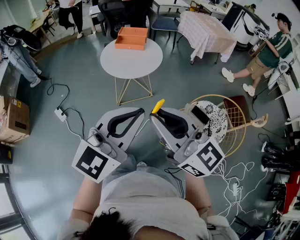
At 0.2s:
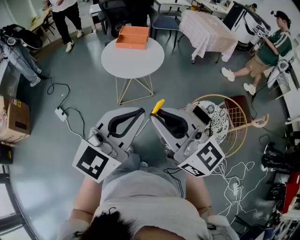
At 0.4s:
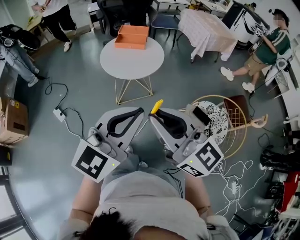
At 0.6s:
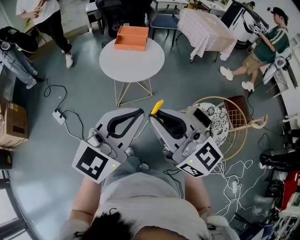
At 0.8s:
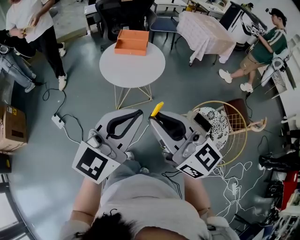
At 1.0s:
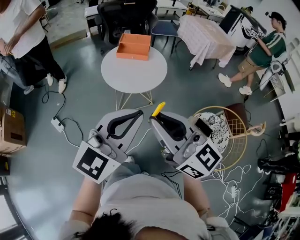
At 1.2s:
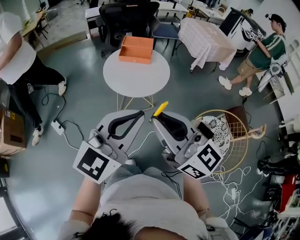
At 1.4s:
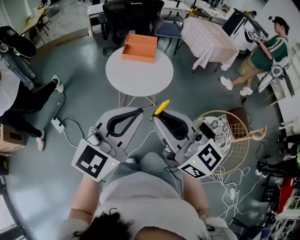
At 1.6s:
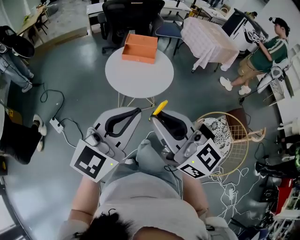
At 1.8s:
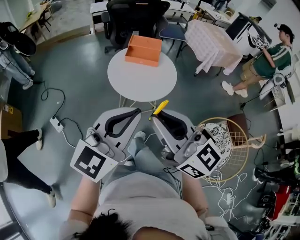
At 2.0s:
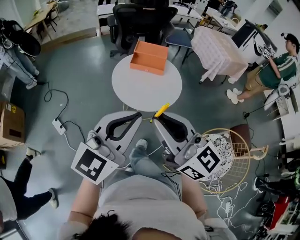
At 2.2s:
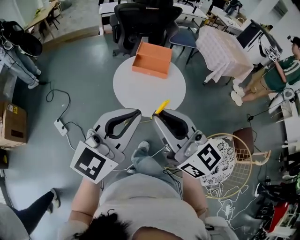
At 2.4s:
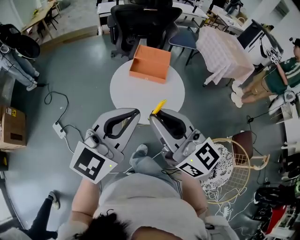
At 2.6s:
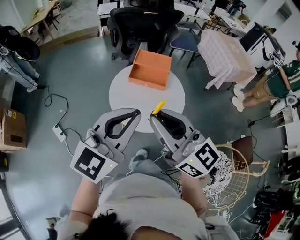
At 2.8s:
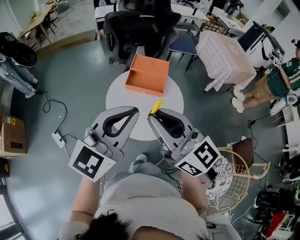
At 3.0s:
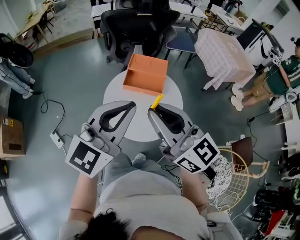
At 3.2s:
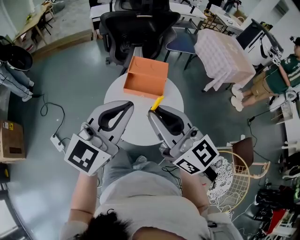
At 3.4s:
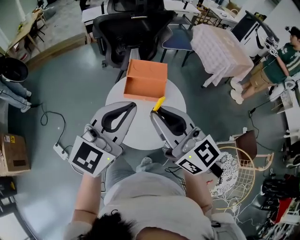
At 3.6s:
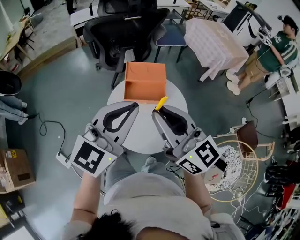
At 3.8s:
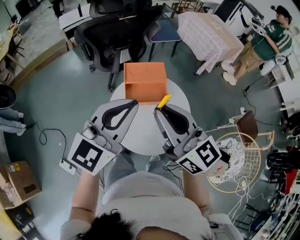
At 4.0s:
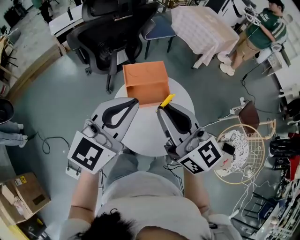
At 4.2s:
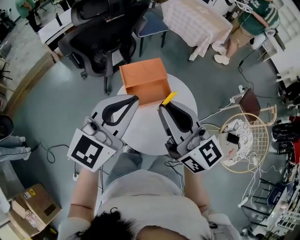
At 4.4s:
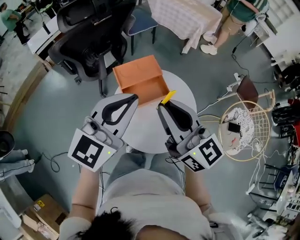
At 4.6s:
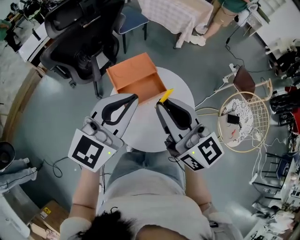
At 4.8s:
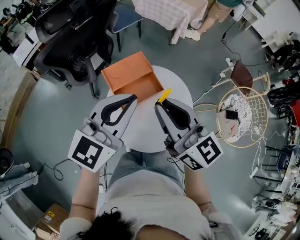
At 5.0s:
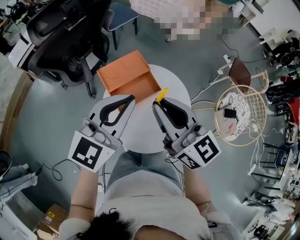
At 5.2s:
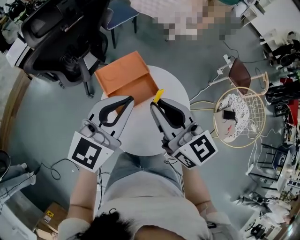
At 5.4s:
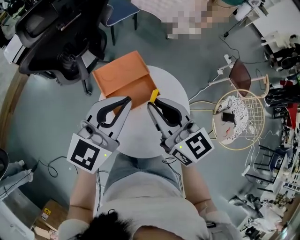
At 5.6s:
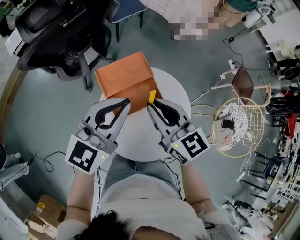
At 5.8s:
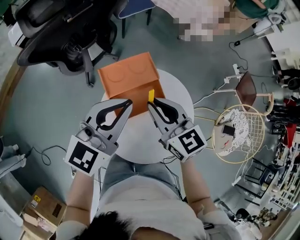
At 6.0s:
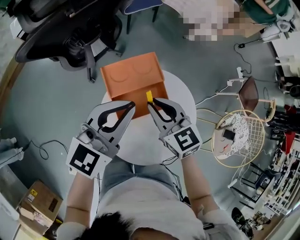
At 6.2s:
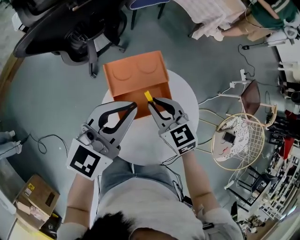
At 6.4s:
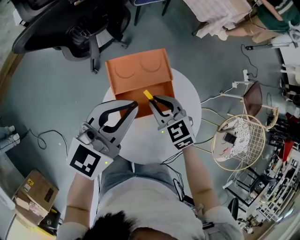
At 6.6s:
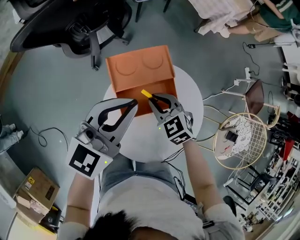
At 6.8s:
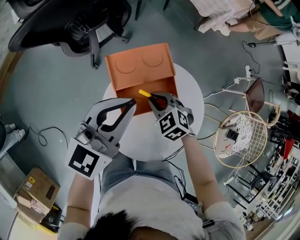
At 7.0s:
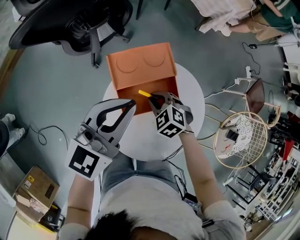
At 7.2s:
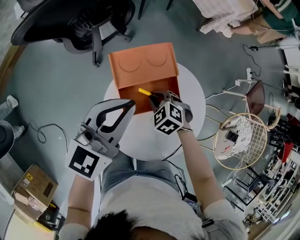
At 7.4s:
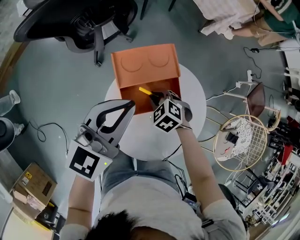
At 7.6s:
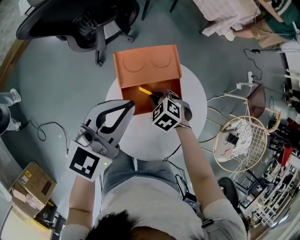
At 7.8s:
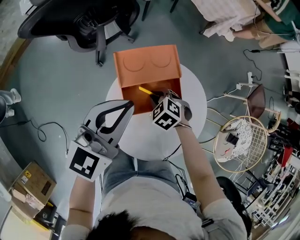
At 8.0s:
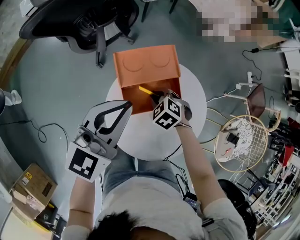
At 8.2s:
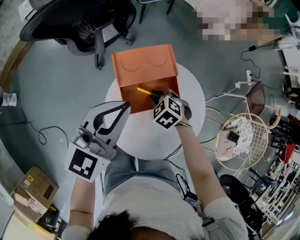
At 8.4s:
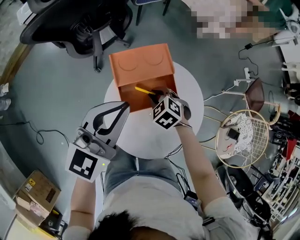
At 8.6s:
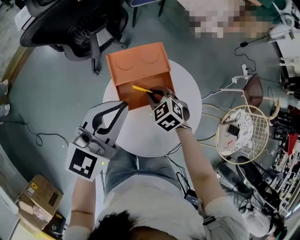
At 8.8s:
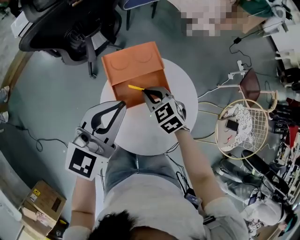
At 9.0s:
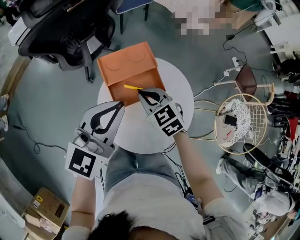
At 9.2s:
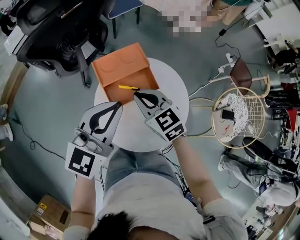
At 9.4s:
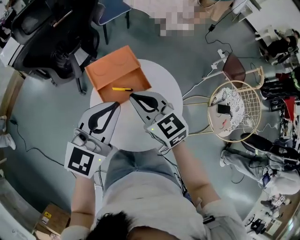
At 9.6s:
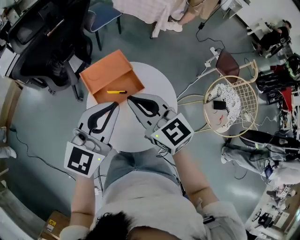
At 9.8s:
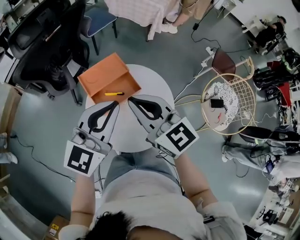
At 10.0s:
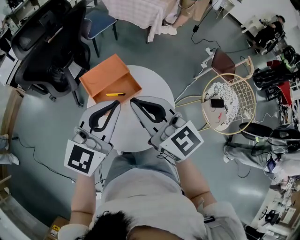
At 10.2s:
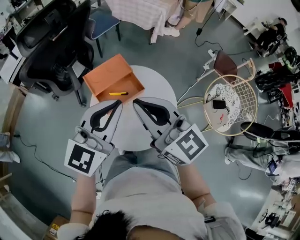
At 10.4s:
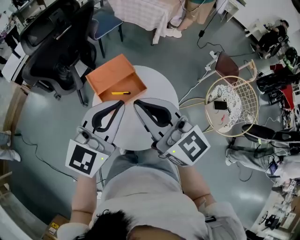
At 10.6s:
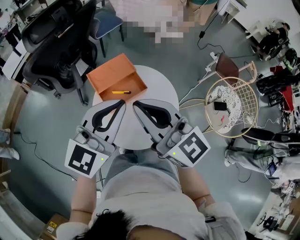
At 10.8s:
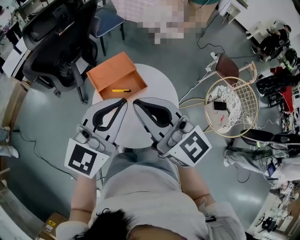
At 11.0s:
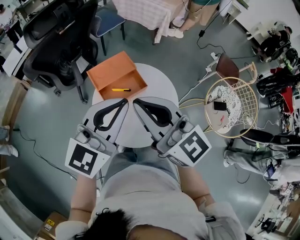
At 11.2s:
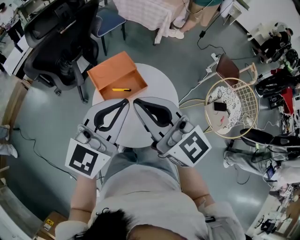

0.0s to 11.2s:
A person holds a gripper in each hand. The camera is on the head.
0.0s to 1.6s: The two grippers go roughly 20 cm forward and to the left.
1.6s to 3.2s: The grippers both shift forward by roughly 30 cm.
3.2s to 4.8s: The left gripper shifts by roughly 20 cm, and rotates about 40 degrees, while the right gripper shifts by about 15 cm, and swivels approximately 50 degrees.
4.8s to 6.4s: The left gripper moves forward and downward, about 15 cm, while the right gripper moves downward and forward, about 30 cm, and tips its fingers downward by roughly 40 degrees.
6.4s to 8.0s: The right gripper is displaced downward by roughly 10 cm, and swivels about 30 degrees.
8.0s to 9.6s: The right gripper heads upward, covering roughly 30 cm, and angles its fingers upward, by roughly 60 degrees, while the left gripper travels backward, to the right and upward by some 15 cm.
9.6s to 11.2s: The left gripper moves upward, about 5 cm. The right gripper is displaced upward and backward by roughly 15 cm.

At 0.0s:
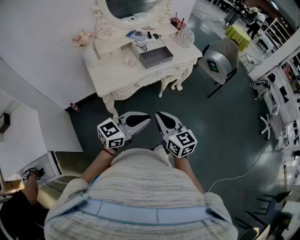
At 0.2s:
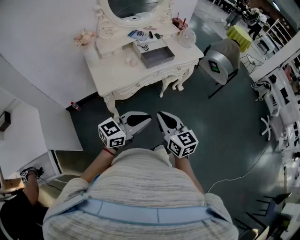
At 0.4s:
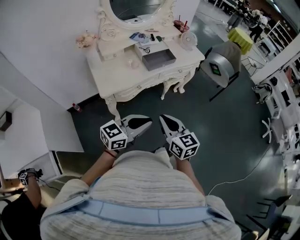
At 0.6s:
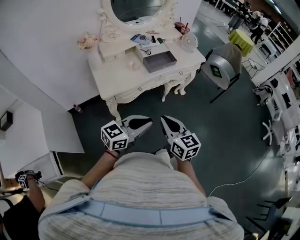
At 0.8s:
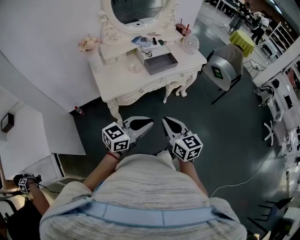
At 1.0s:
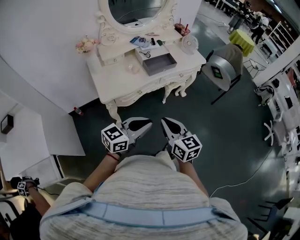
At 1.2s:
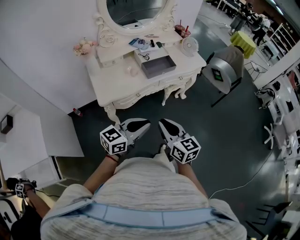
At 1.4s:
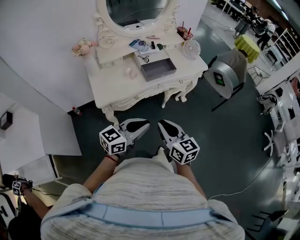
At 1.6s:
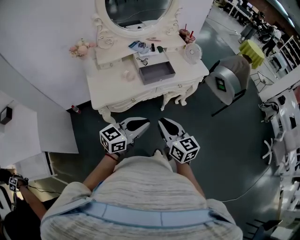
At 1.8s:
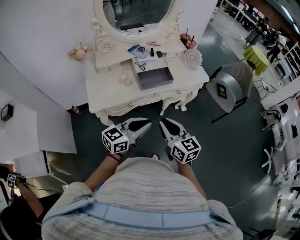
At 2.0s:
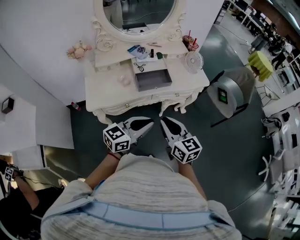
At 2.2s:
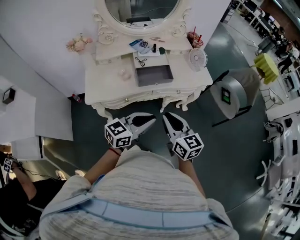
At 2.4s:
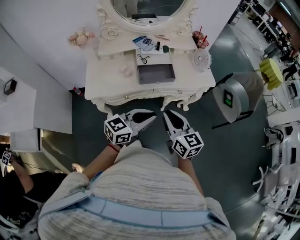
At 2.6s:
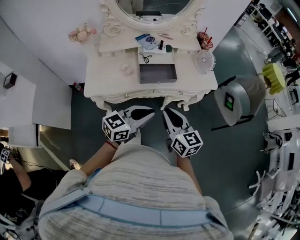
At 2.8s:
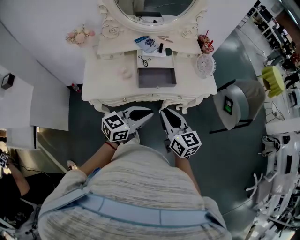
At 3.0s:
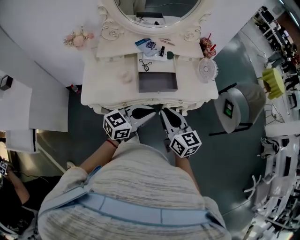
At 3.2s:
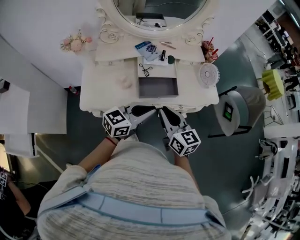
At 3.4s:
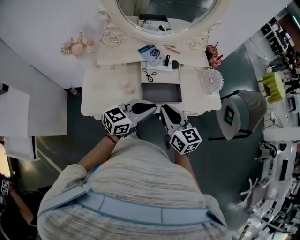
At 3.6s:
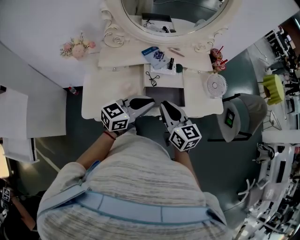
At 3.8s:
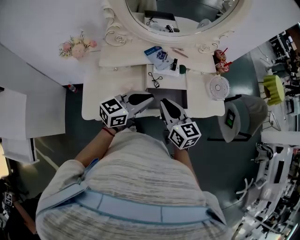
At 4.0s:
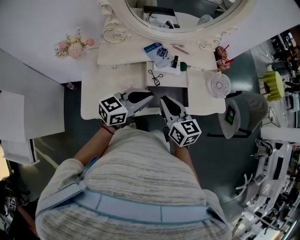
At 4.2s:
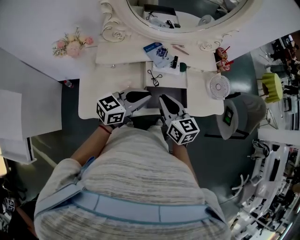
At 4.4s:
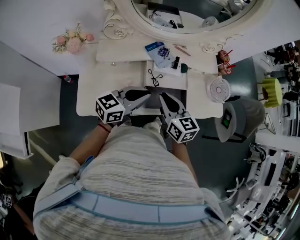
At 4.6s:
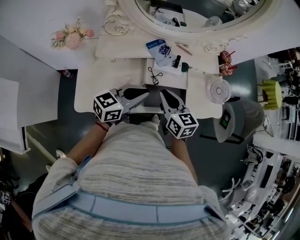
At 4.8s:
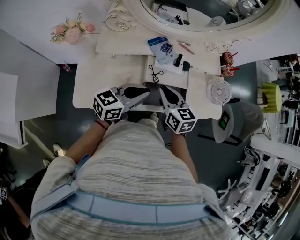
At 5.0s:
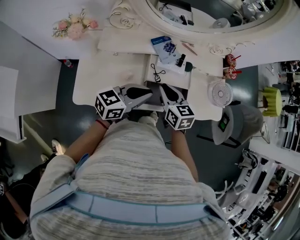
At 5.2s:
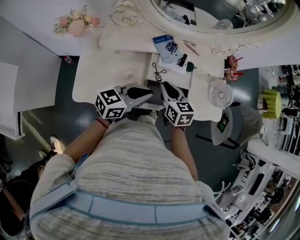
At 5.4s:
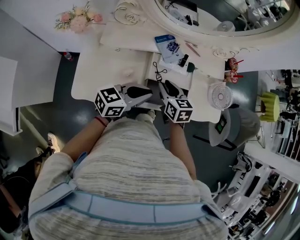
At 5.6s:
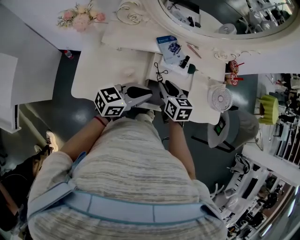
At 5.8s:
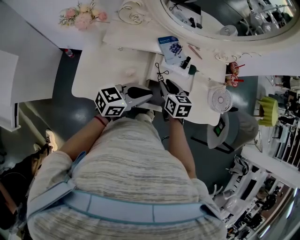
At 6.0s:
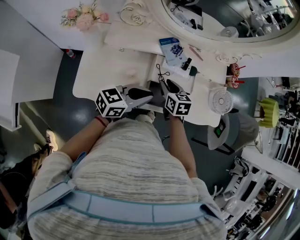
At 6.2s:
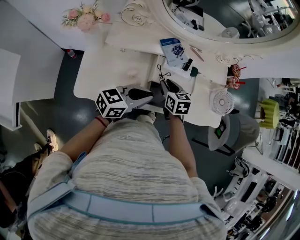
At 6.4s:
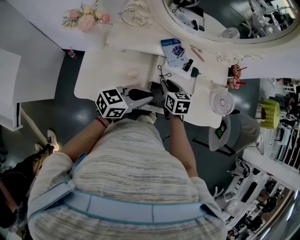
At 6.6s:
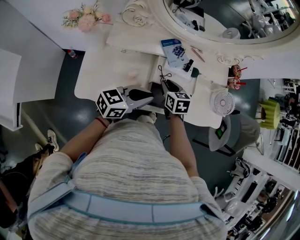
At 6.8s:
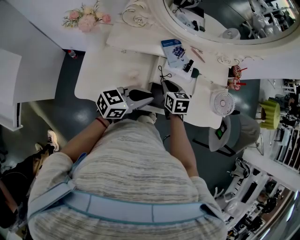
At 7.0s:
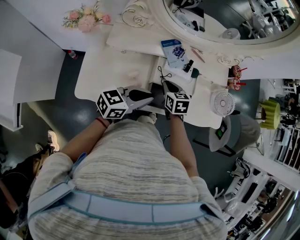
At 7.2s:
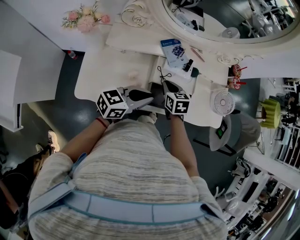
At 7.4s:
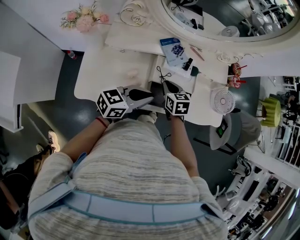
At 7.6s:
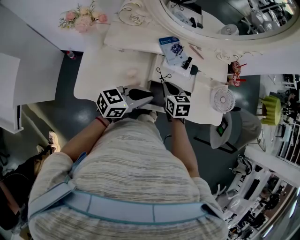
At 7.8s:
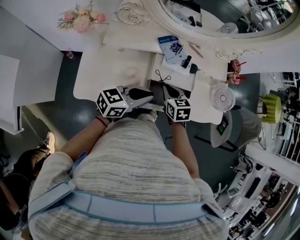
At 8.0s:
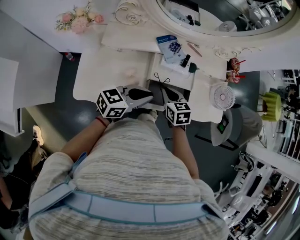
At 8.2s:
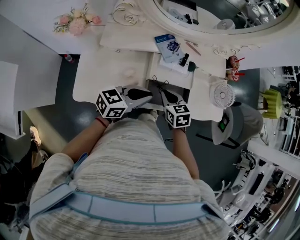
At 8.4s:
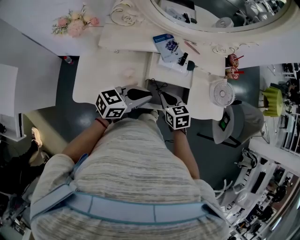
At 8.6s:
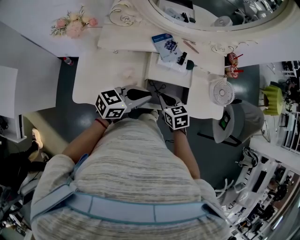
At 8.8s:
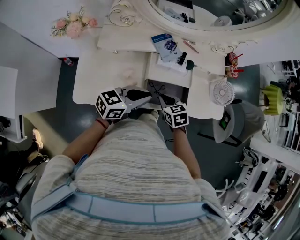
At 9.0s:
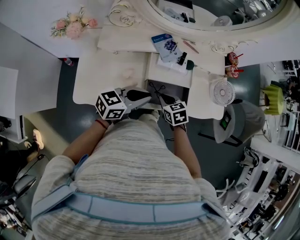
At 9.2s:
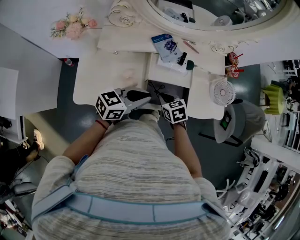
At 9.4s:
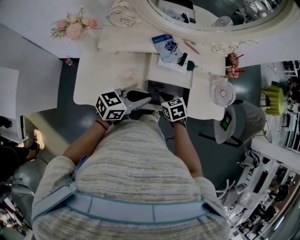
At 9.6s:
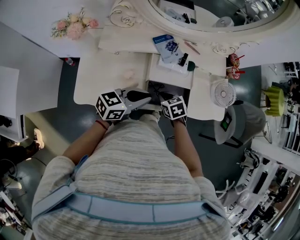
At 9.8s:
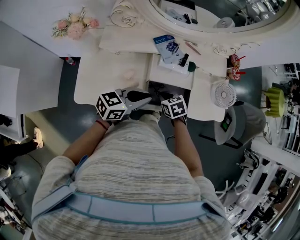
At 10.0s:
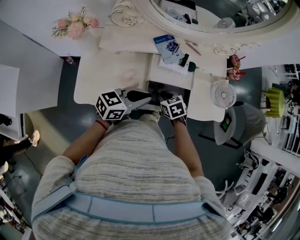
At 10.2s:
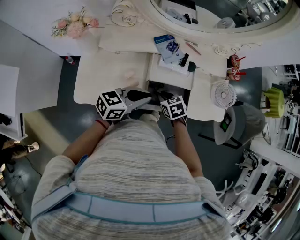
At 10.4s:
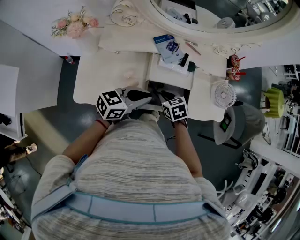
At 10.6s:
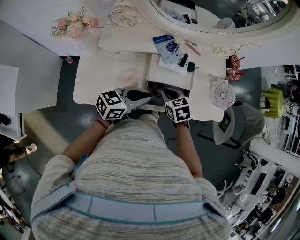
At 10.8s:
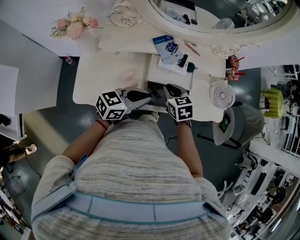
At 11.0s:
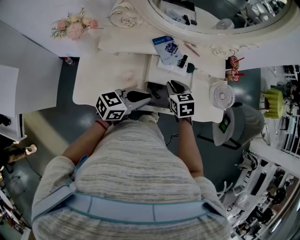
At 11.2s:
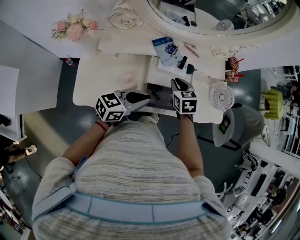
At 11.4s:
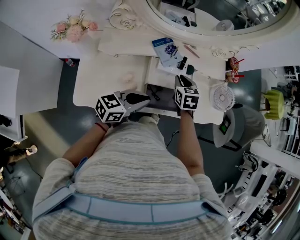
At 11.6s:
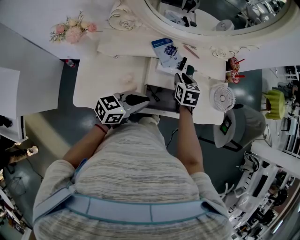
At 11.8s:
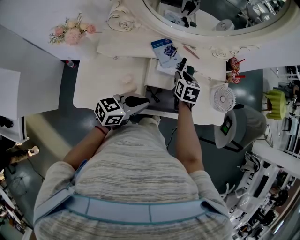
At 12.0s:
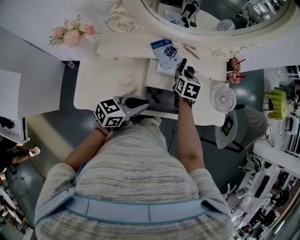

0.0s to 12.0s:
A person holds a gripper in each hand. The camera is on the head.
0.0s to 1.6s: The left gripper is displaced forward by about 15 cm. The right gripper travels forward and to the right by some 15 cm.
1.6s to 3.0s: The two grippers go roughly 20 cm forward.
3.0s to 4.4s: The two grippers go approximately 25 cm forward and to the left.
4.4s to 6.0s: The right gripper goes approximately 15 cm downward and forward, and swivels about 20 degrees.
6.0s to 7.6s: The grippers move only a little.
7.6s to 9.0s: The right gripper travels backward by roughly 5 cm.
9.0s to 10.4s: There are only small adjustments of the grippers.
10.4s to 12.0s: The right gripper is displaced forward by approximately 15 cm, changes its angle by some 30 degrees, and opens.

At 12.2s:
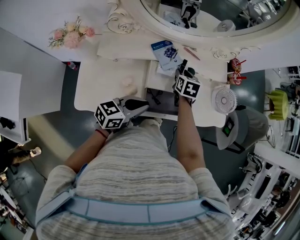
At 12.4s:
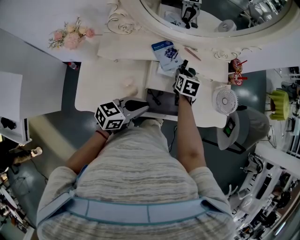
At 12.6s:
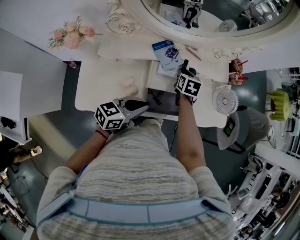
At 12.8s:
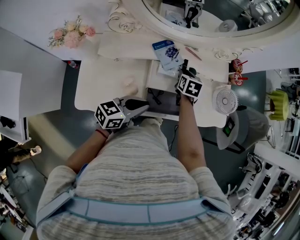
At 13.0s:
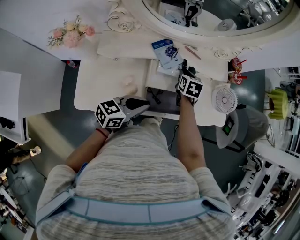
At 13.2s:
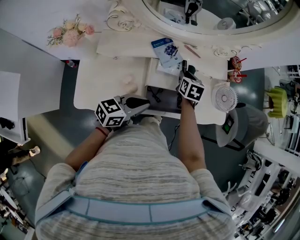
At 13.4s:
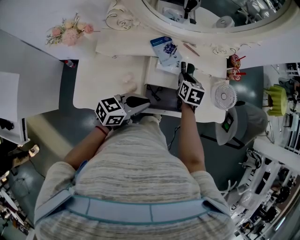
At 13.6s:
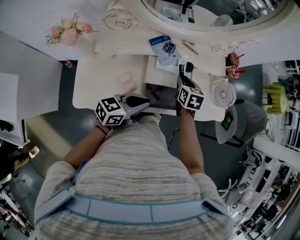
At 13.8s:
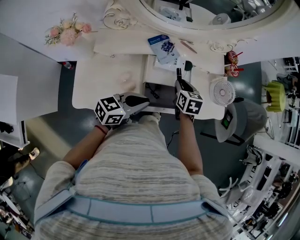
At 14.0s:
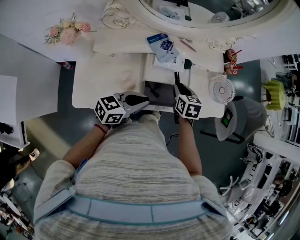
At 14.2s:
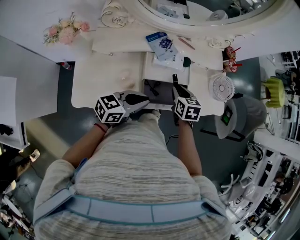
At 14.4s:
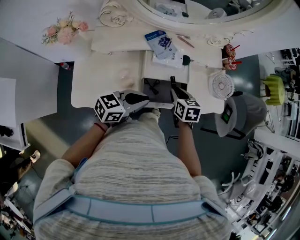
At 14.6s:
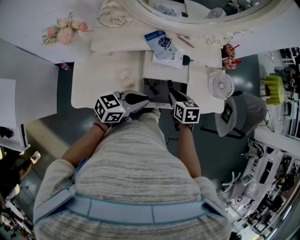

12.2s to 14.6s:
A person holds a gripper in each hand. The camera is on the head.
12.2s to 13.4s: The grippers move only a little.
13.4s to 14.6s: The right gripper is displaced backward by about 15 cm.
